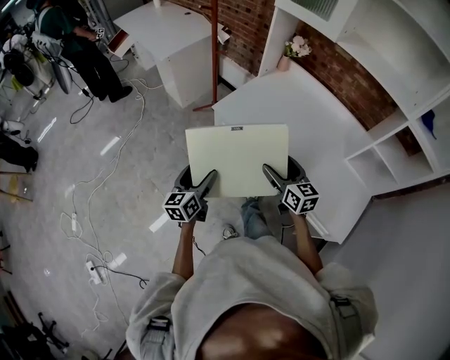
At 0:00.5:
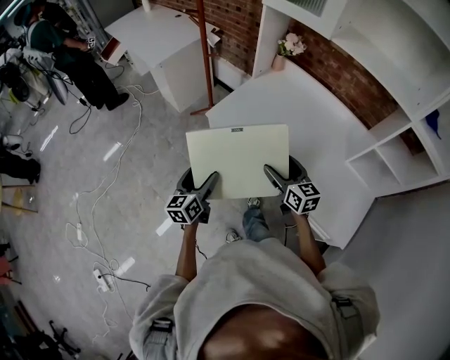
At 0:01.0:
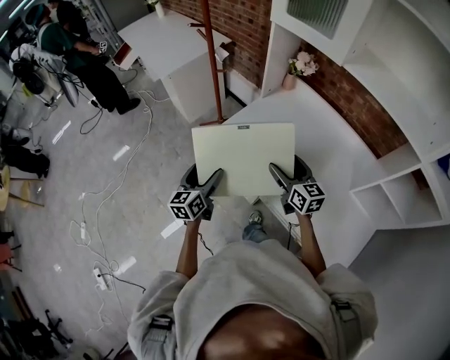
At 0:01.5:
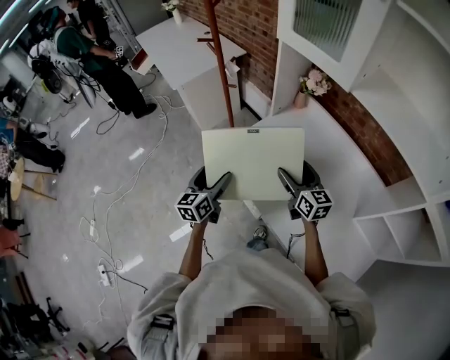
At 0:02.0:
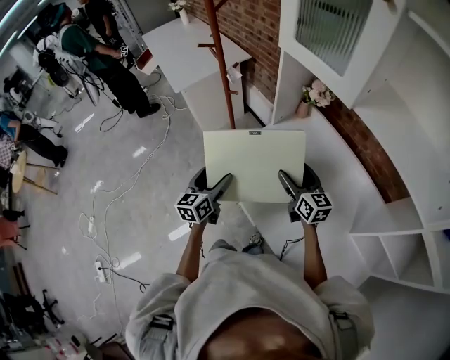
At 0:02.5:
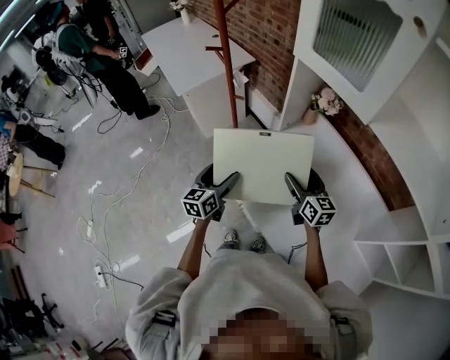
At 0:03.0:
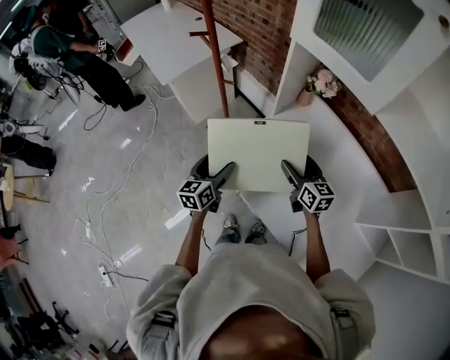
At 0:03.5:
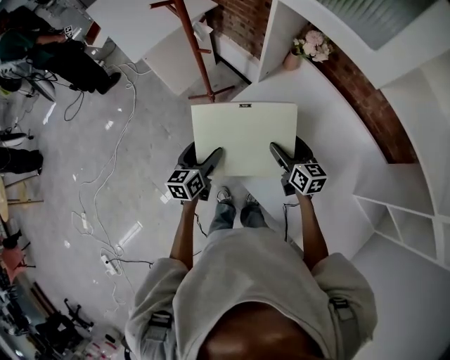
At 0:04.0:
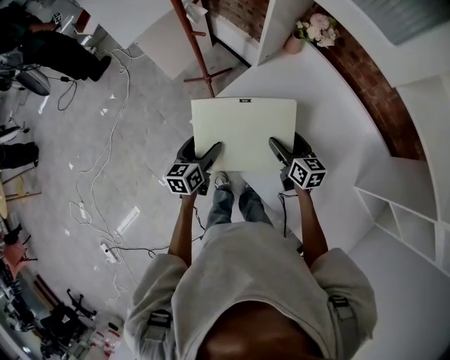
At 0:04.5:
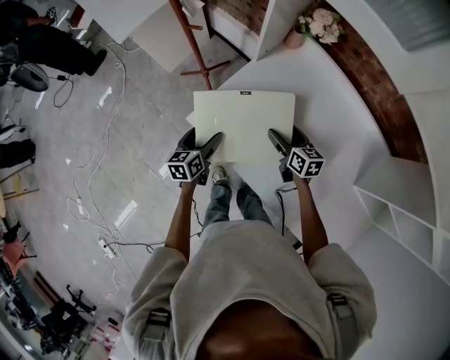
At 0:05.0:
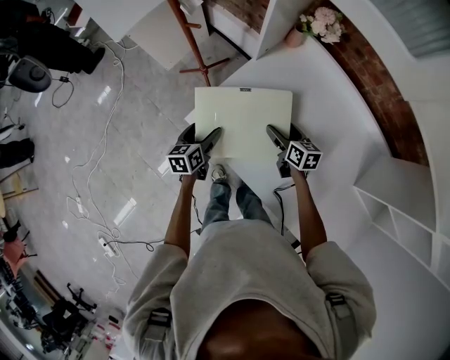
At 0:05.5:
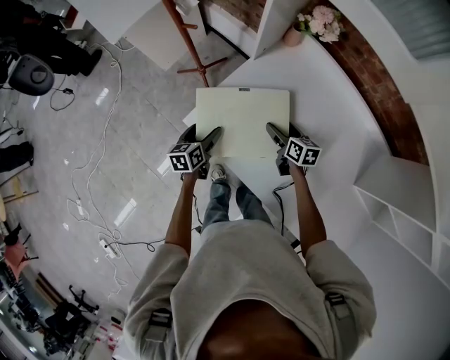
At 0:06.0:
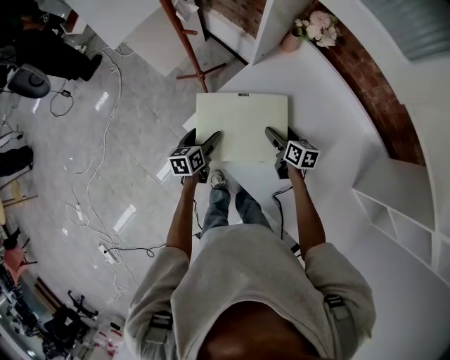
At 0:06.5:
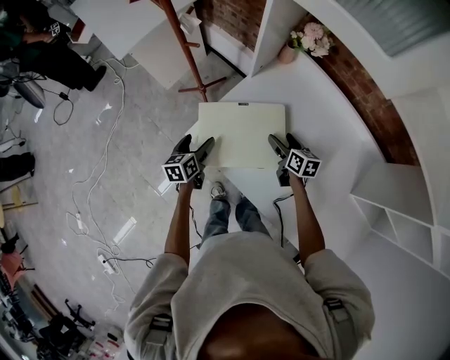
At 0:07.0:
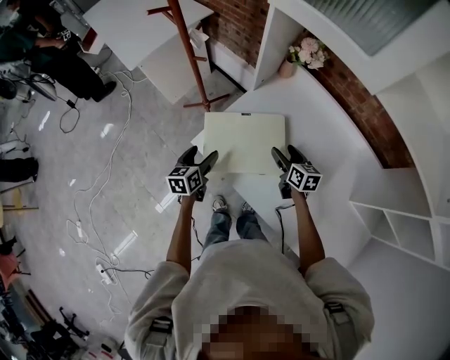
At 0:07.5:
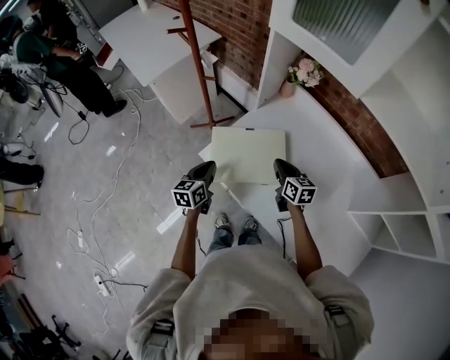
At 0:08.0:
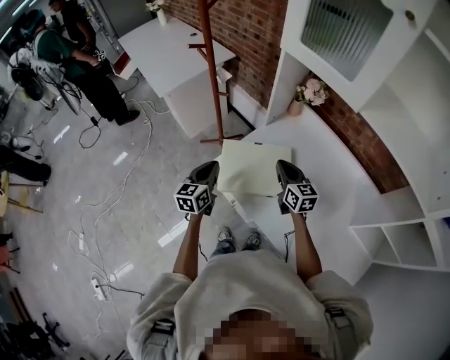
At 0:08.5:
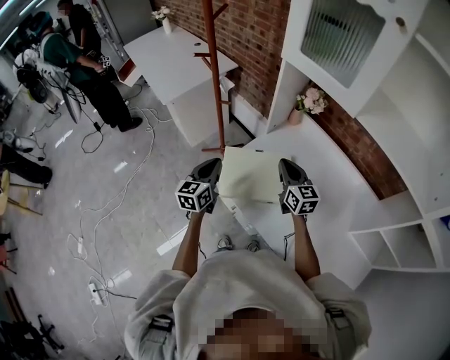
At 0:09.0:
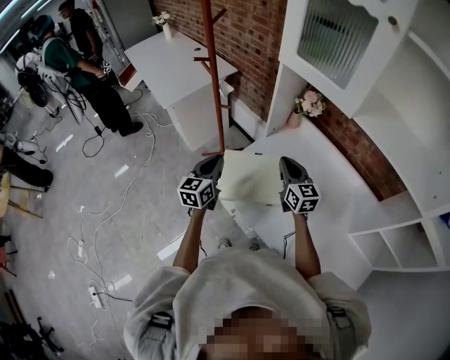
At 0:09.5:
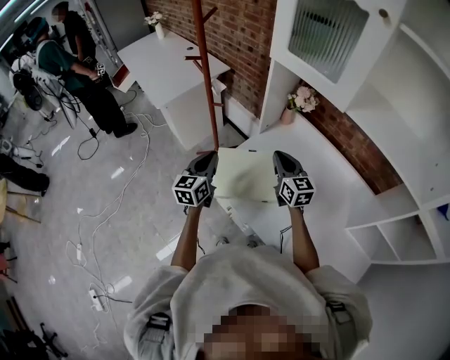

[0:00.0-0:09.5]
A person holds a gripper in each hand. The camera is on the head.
0:00.0 to 0:02.0: Both grippers travel together forward and to the right, some 30 cm.
0:02.0 to 0:04.0: The left gripper goes roughly 15 cm downward and forward. Meanwhile the right gripper is displaced downward by some 15 cm, and swivels about 20 degrees.
0:04.0 to 0:05.5: The right gripper is displaced downward by approximately 10 cm; the left gripper travels downward and forward by about 10 cm.
0:05.5 to 0:07.5: Both grippers travel together upward and backward, approximately 15 cm. The left gripper closes its fingers. The right gripper closes.
0:07.5 to 0:09.5: Both grippers travel together upward, approximately 15 cm. The right gripper rotates some 30 degrees.

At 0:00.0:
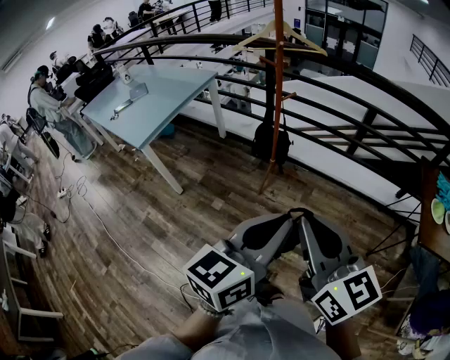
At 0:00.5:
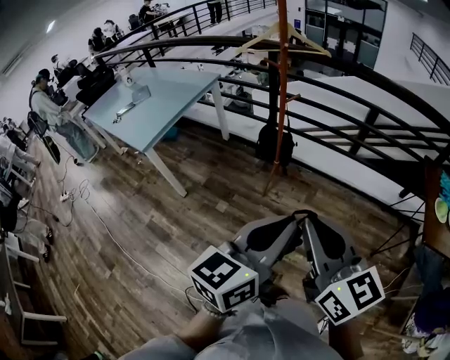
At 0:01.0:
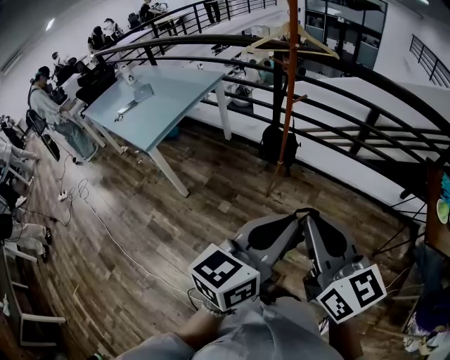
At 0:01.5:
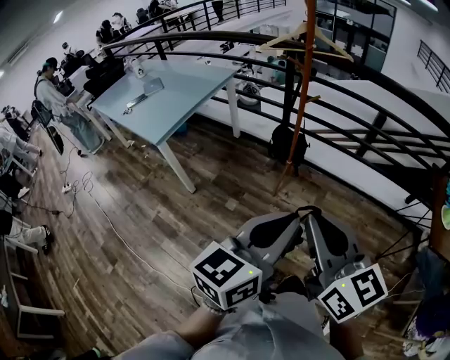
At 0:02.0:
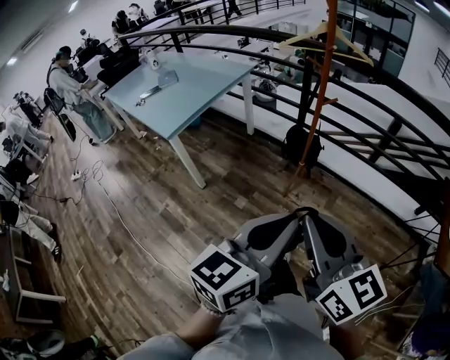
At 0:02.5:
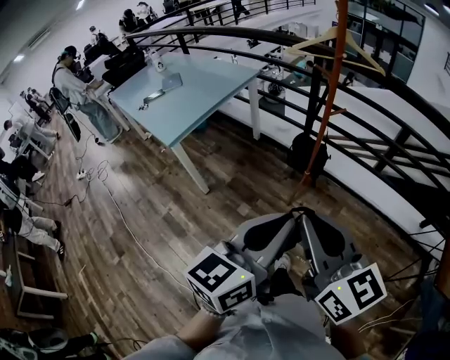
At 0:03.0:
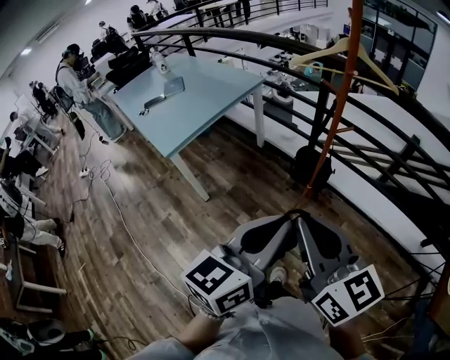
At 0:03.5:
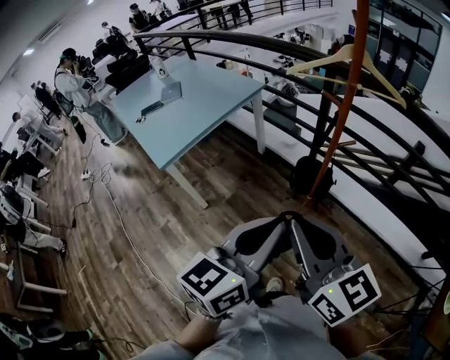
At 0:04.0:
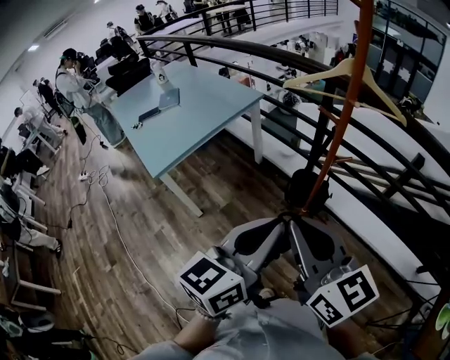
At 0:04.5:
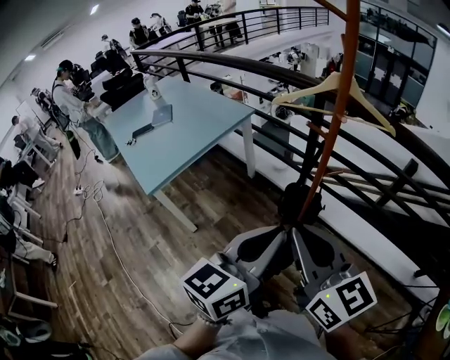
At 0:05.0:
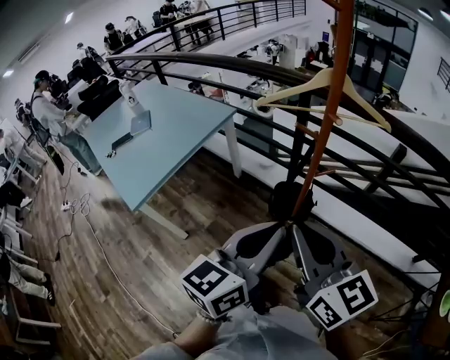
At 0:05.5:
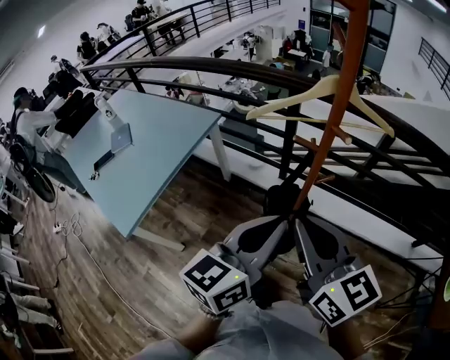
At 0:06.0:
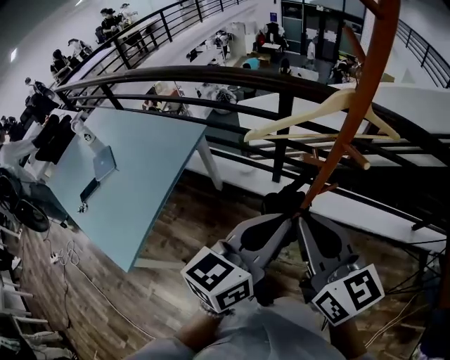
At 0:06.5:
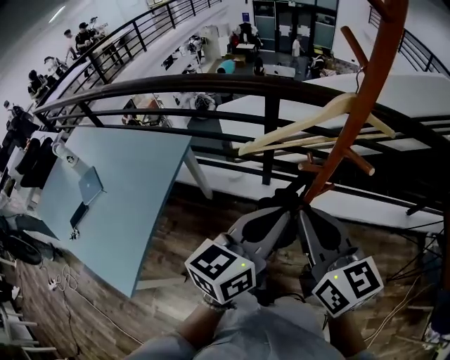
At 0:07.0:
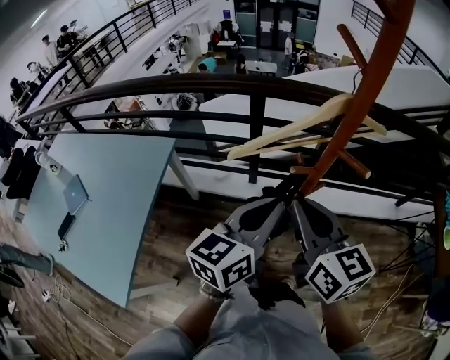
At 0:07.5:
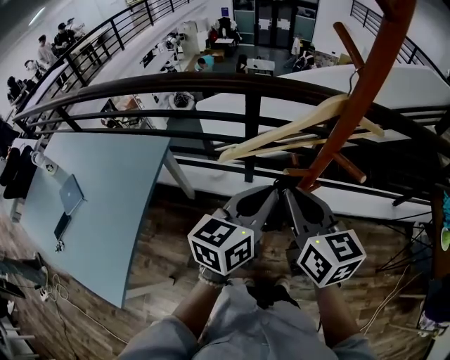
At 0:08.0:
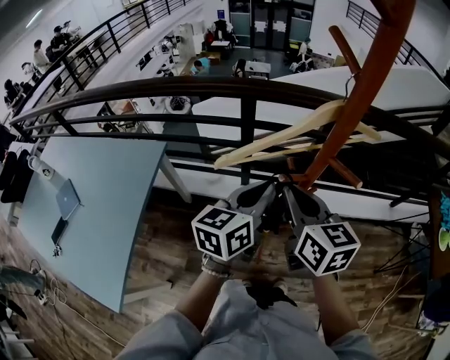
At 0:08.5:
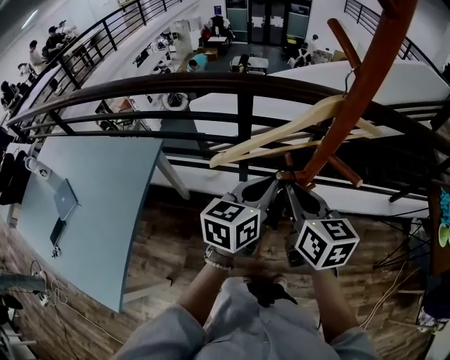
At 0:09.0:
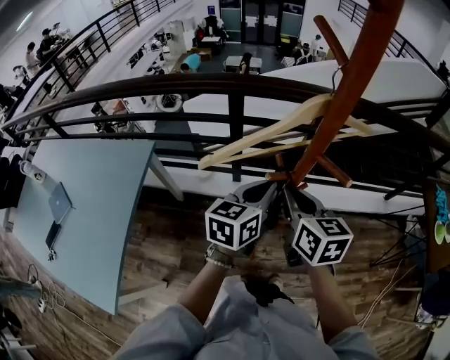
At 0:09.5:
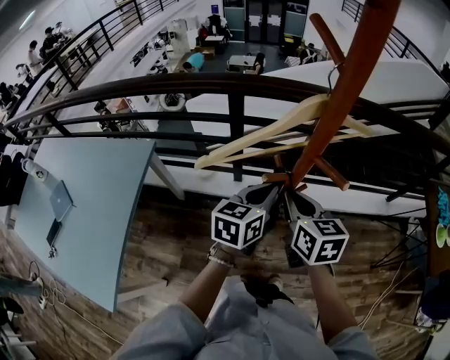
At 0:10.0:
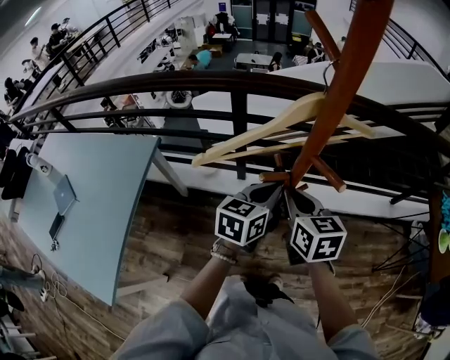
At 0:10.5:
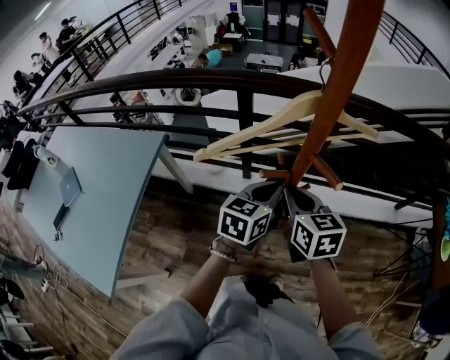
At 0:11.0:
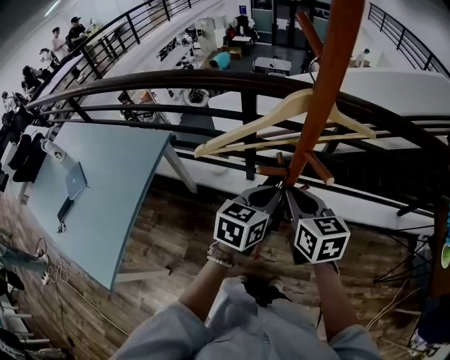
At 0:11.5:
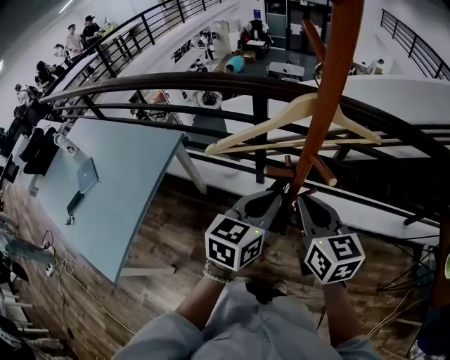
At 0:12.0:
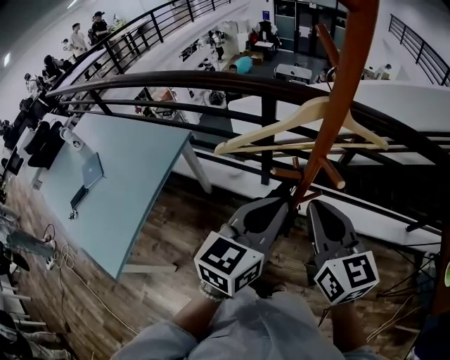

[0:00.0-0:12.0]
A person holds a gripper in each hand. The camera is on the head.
0:00.0 to 0:02.0: Both grippers travel together to the left, approximately 10 cm.
0:02.0 to 0:04.0: The two grippers go some 30 cm forward.
0:04.0 to 0:06.0: The left gripper changes place by approximately 25 cm, and rotates about 30 degrees; the right gripper shifts by roughly 25 cm, and swivels approximately 30 degrees.
0:06.0 to 0:08.0: Both grippers move forward and downward, approximately 15 cm. The right gripper rotates roughly 20 degrees.
0:08.0 to 0:10.0: Both grippers travel together downward and to the right, approximately 10 cm.
0:10.0 to 0:12.0: Both grippers travel together upward and backward, approximately 15 cm. The right gripper swivels roughly 20 degrees.

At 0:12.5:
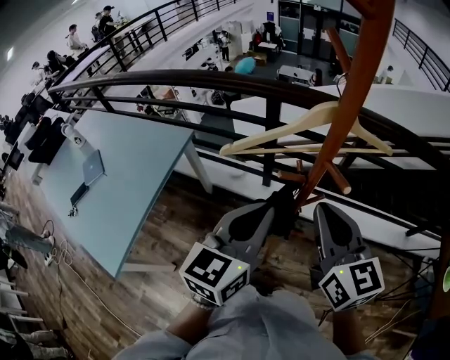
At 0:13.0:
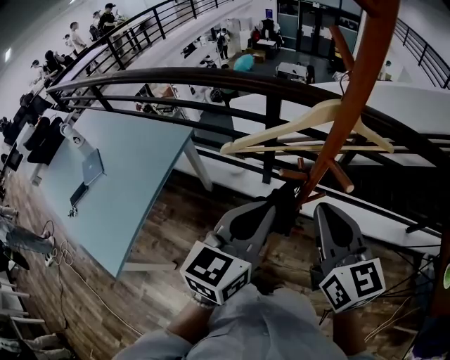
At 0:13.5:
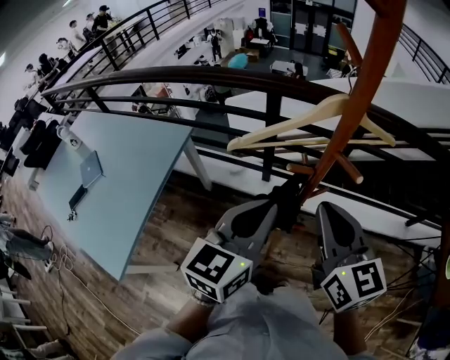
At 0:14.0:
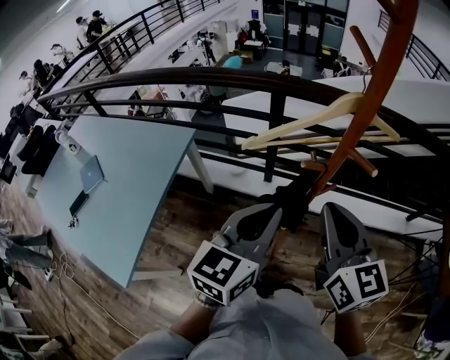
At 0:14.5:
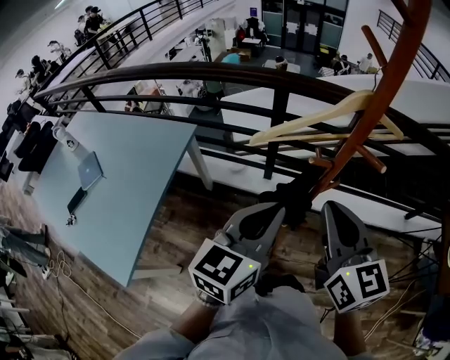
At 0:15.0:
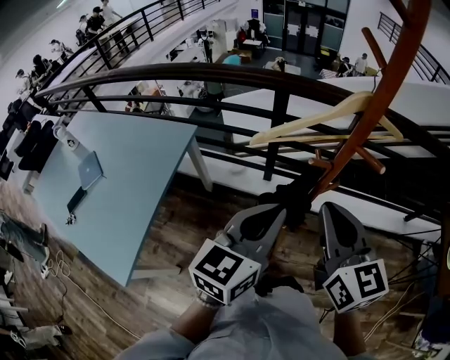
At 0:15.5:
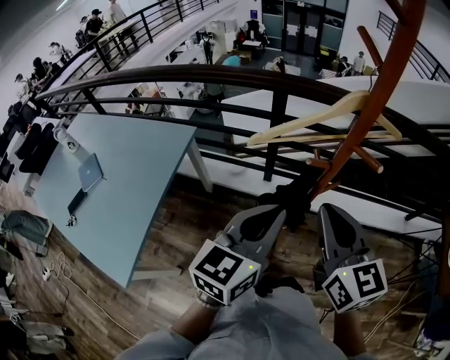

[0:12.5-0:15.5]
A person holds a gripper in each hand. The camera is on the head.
0:12.5 to 0:14.0: The left gripper shifts by approximately 5 cm. Meanwhile the right gripper changes place by roughly 5 cm.
0:14.0 to 0:15.5: The grippers make only small movements.

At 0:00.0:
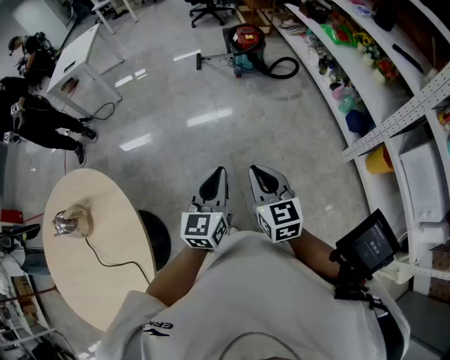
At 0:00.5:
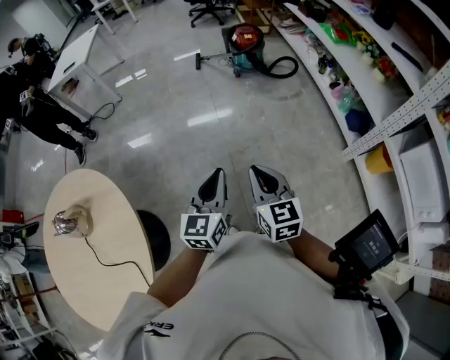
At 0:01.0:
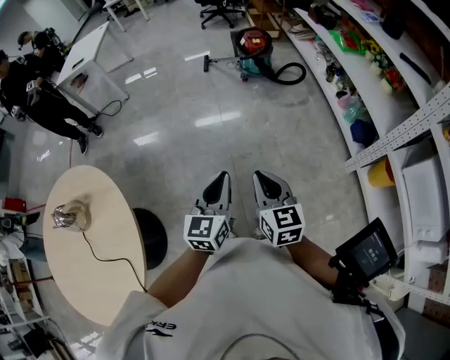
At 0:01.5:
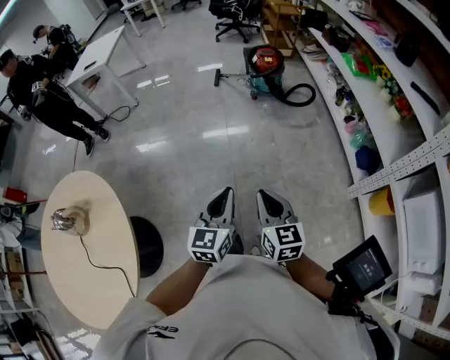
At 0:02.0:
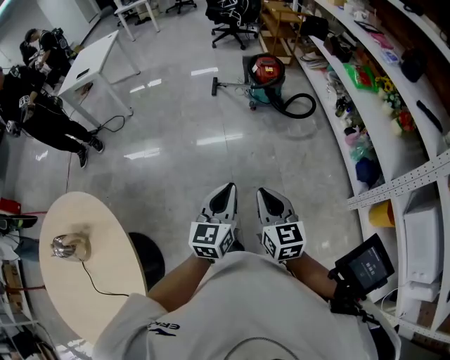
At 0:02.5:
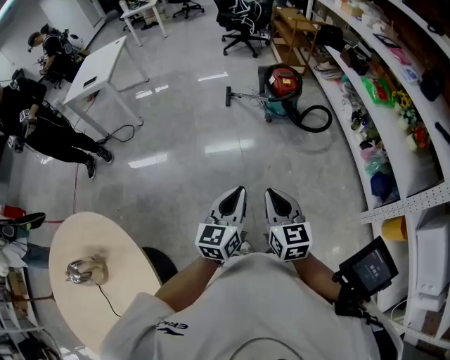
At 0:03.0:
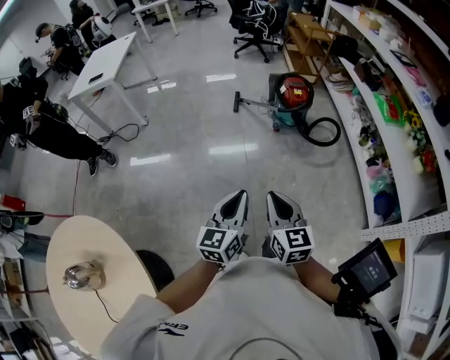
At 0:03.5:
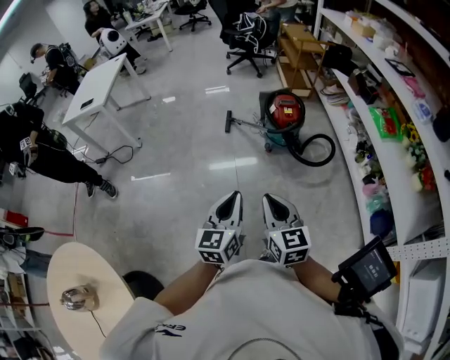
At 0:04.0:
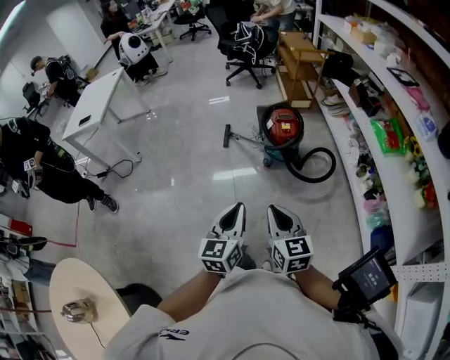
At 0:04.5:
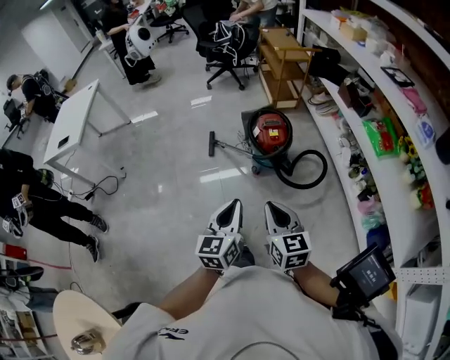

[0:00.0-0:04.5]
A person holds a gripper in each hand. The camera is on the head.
0:00.0 to 0:02.0: Both grippers move forward, approximately 15 cm.
0:02.0 to 0:04.5: The two grippers travel together, forward, approximately 50 cm.
